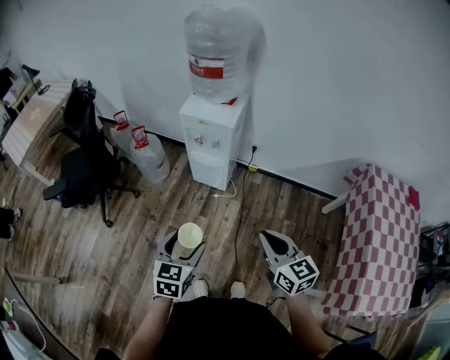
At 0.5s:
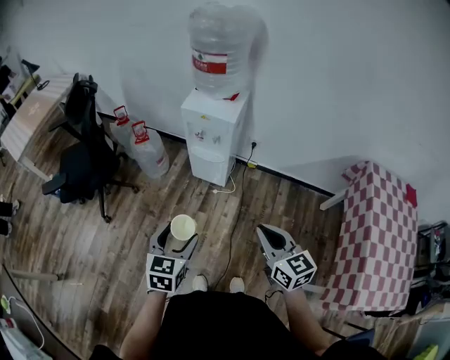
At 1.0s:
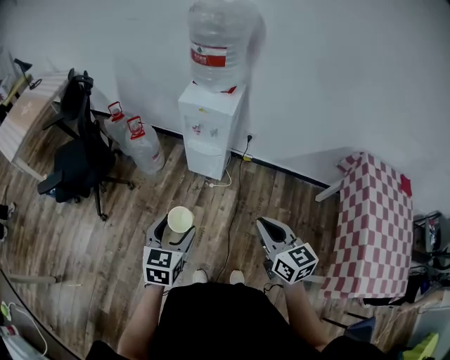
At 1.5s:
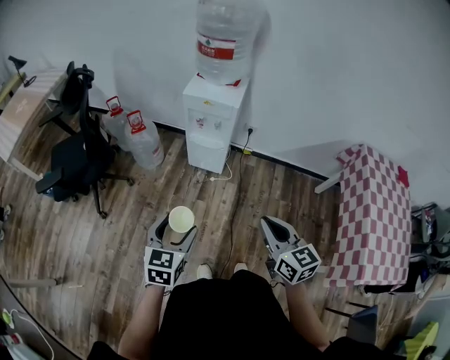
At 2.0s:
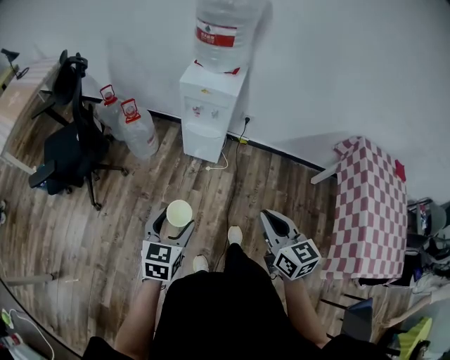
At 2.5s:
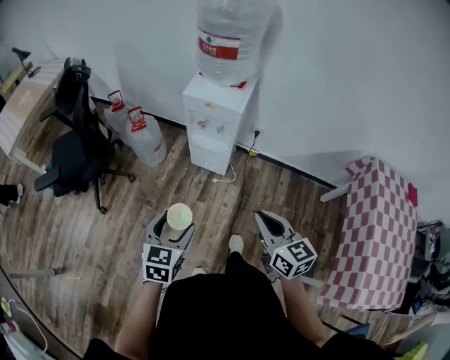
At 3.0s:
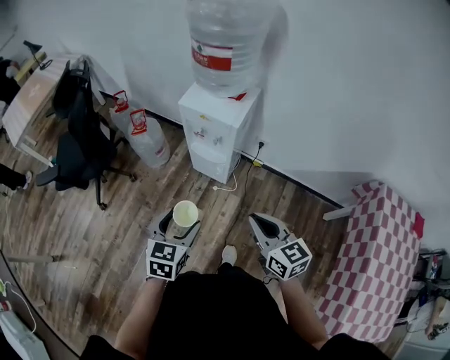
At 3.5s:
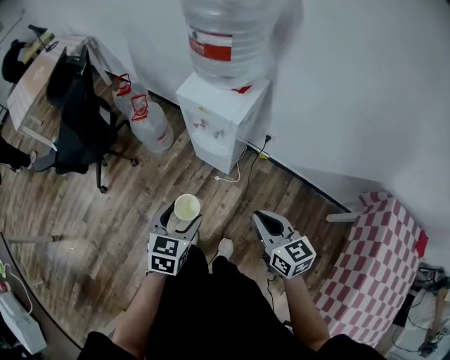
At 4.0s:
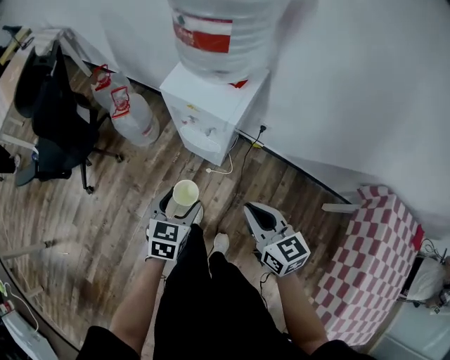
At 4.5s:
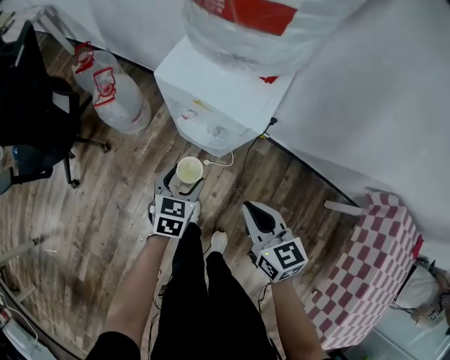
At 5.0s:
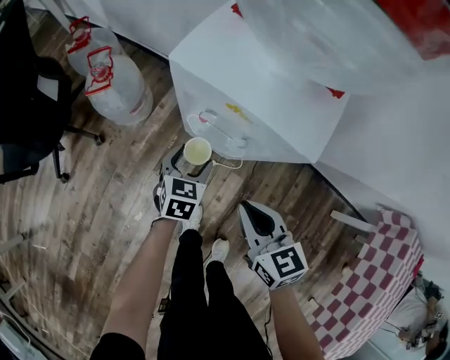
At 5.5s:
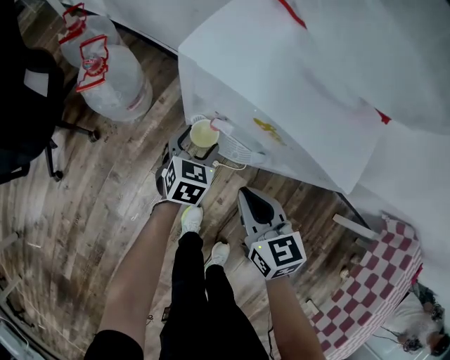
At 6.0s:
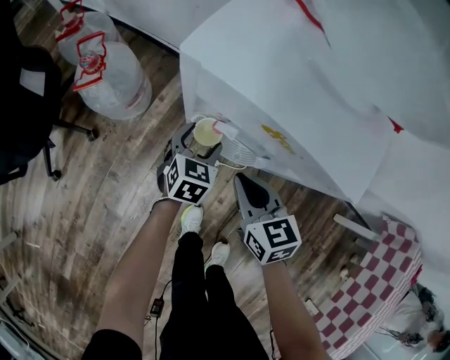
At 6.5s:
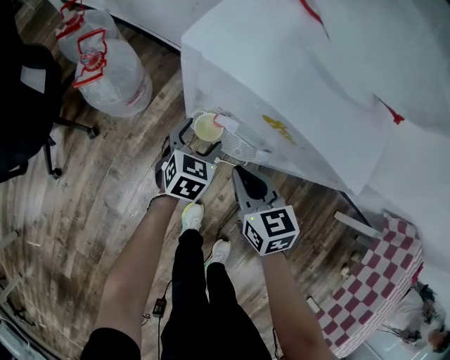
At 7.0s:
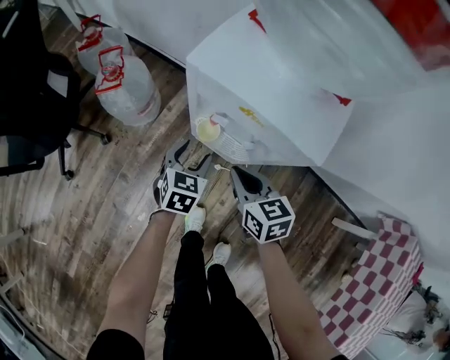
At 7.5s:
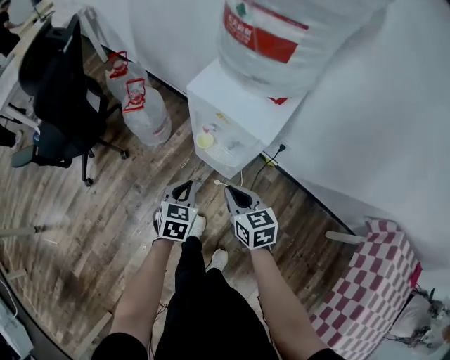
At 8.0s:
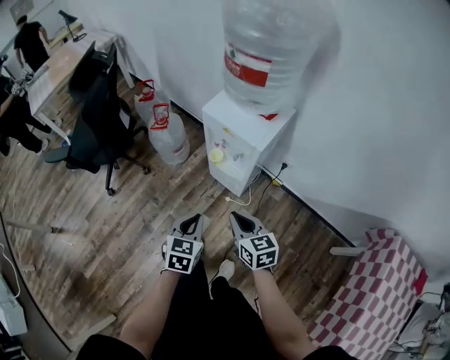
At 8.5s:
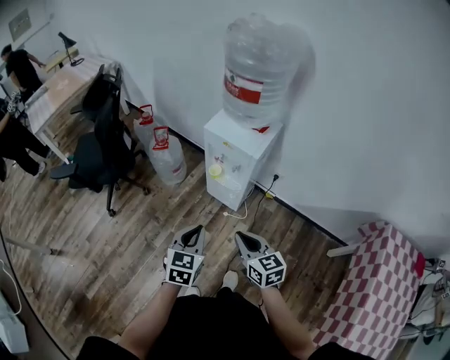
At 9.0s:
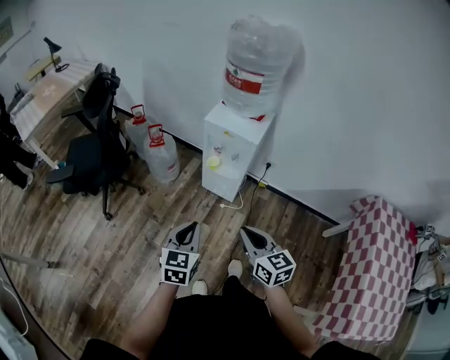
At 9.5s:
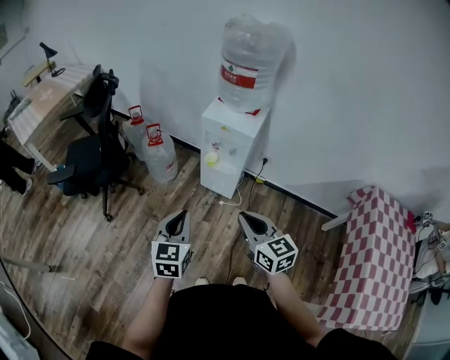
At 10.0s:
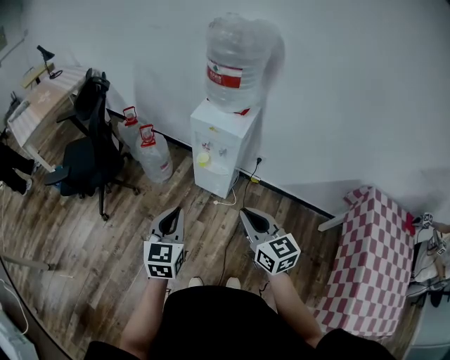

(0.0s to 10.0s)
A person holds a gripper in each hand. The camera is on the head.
0.0s - 2.0s: Both grippers move to the left, about 10 cm.
2.0s - 4.0s: The grippers both shift forward and to the right by roughly 30 cm. The right gripper turns by roughly 20 degrees.
4.0s - 6.0s: The grippers both shift downward and forward by roughly 40 cm.
6.0s - 8.0s: The grippers both shift upward and backward by some 40 cm. The left gripper closes.
8.0s - 10.0s: The right gripper heads upward and backward, covering some 25 cm, and turns by about 20 degrees. The left gripper is displaced upward, backward and to the left by approximately 25 cm, and rotates approximately 20 degrees.

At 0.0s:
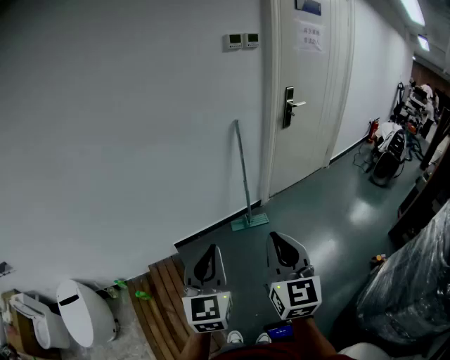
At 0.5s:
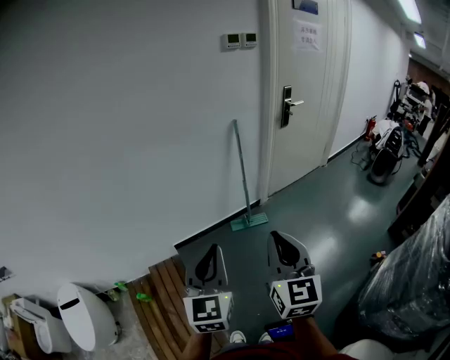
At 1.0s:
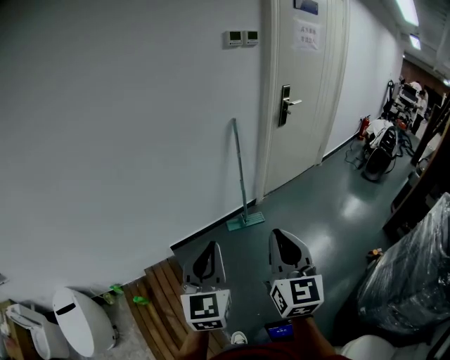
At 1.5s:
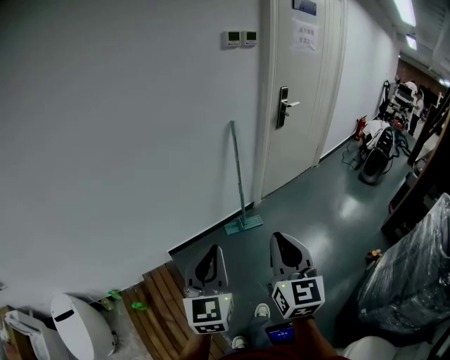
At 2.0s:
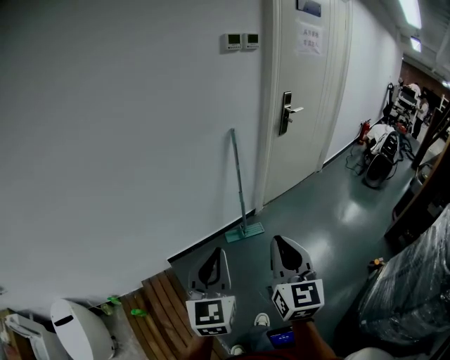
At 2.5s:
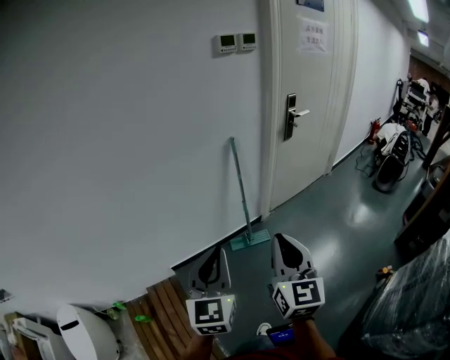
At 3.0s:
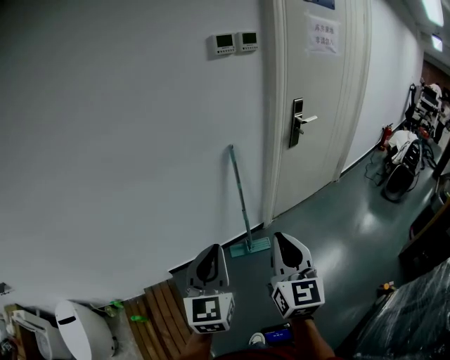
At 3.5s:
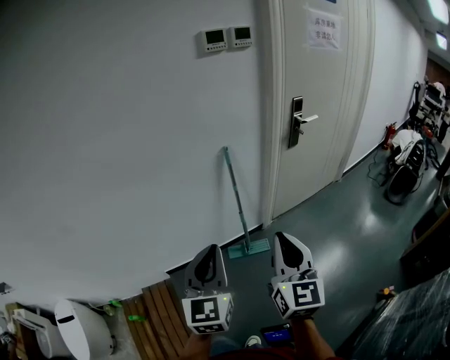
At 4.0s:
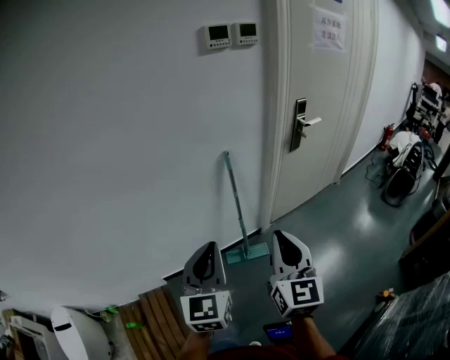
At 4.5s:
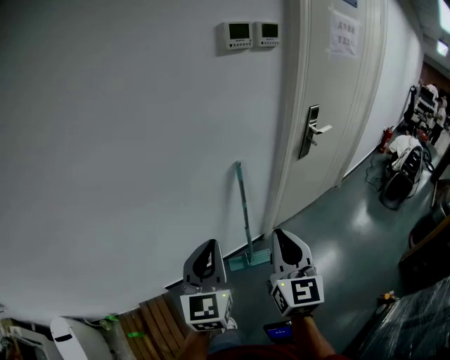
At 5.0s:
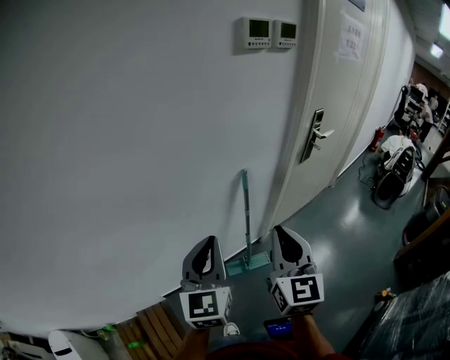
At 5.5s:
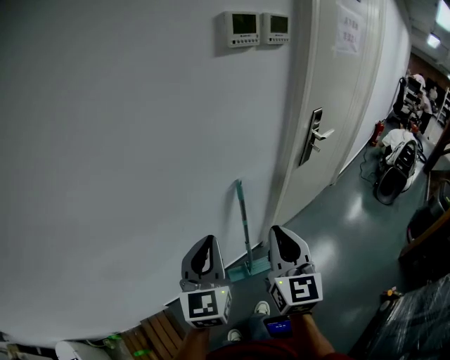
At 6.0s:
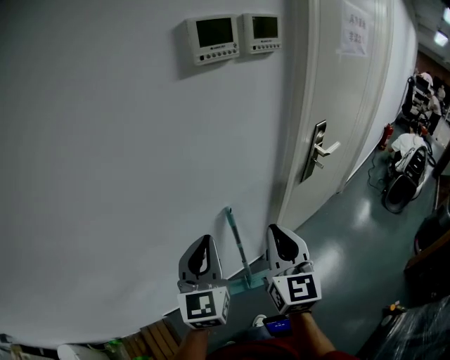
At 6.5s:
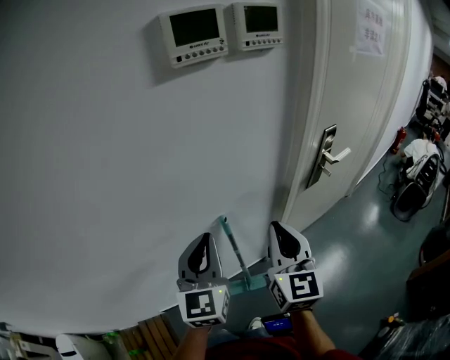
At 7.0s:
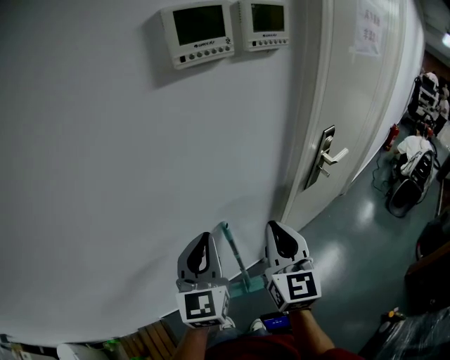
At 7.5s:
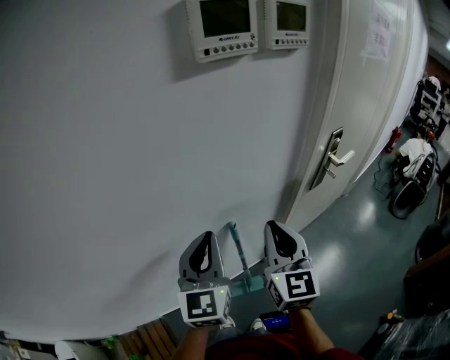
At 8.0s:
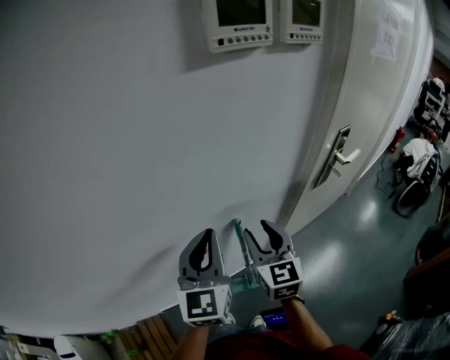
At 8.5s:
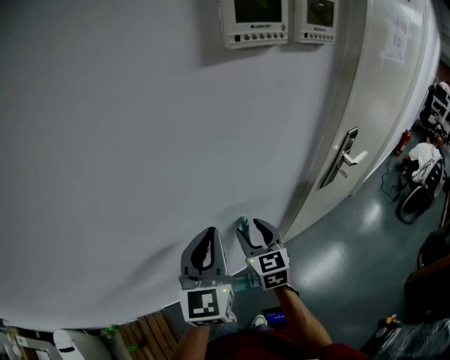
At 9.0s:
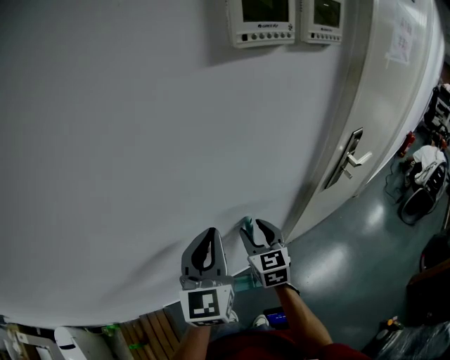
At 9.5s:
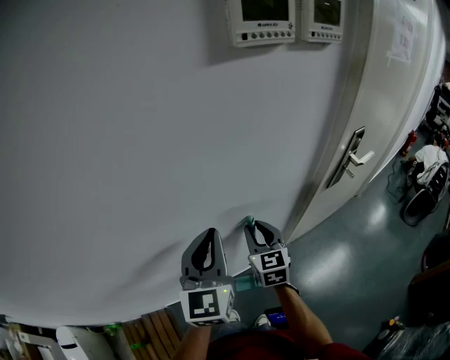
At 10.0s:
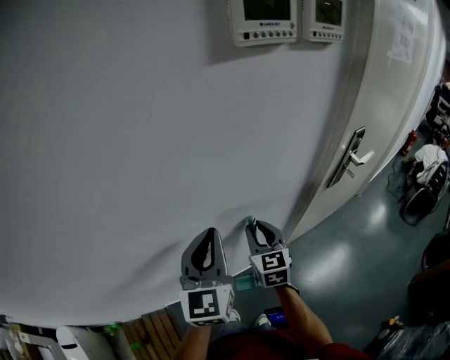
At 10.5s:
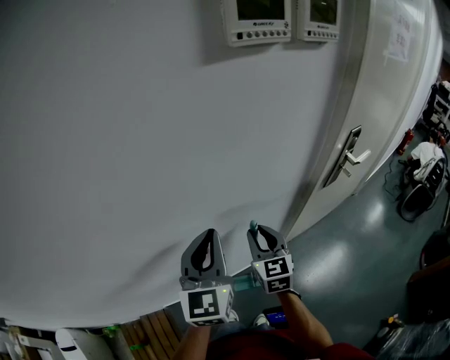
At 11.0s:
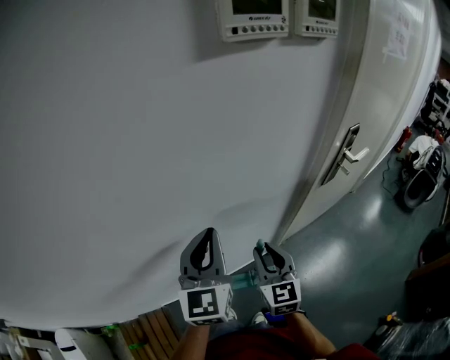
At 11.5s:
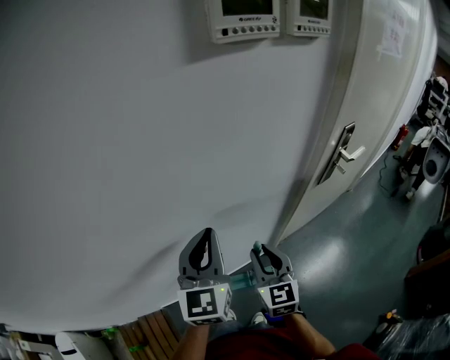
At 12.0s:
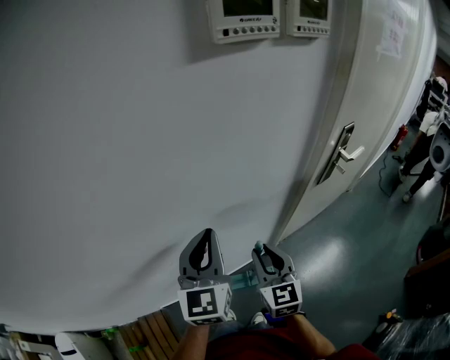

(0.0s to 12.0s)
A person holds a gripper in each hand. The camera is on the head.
0.0s - 2.0s: Both grippers travel together forward, roughly 10 cm.
2.0s - 4.0s: Both grippers travel together forward and to the right, roughly 30 cm.
4.0s - 6.0s: The grippers both shift forward by approximately 35 cm.
6.0s - 8.0s: The left gripper travels forward by about 10 cm, while the right gripper moves forward and downward, roughly 15 cm, and opens.
8.0s - 10.0s: The right gripper is displaced downward by roughly 10 cm.
10.0s - 12.0s: The right gripper moves backward, some 10 cm.

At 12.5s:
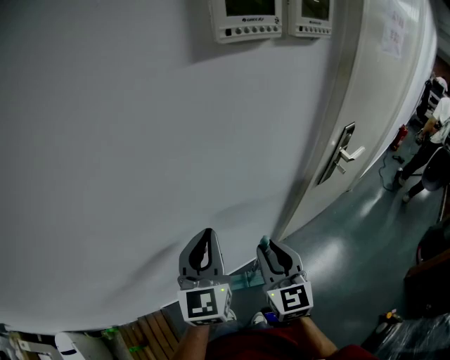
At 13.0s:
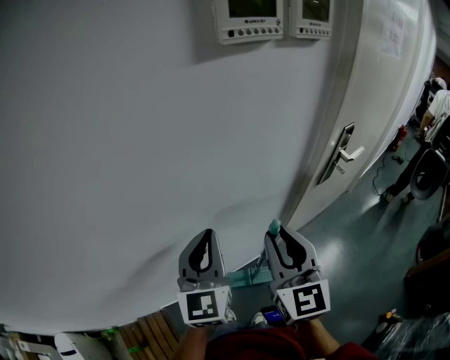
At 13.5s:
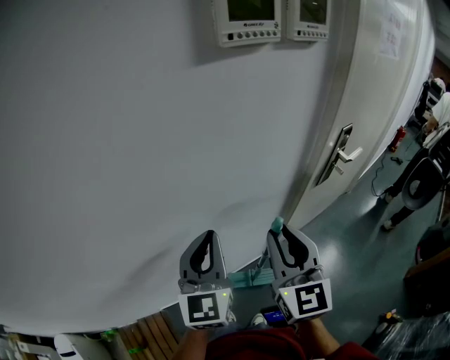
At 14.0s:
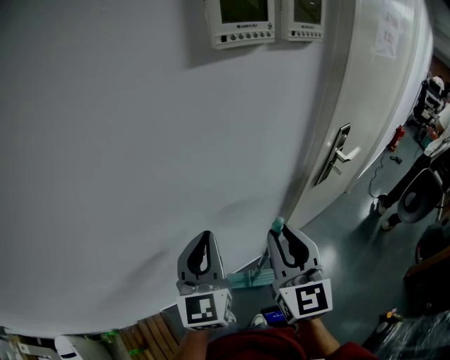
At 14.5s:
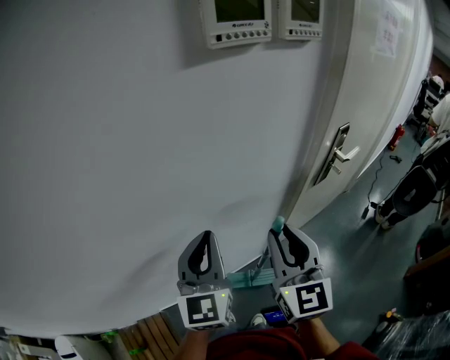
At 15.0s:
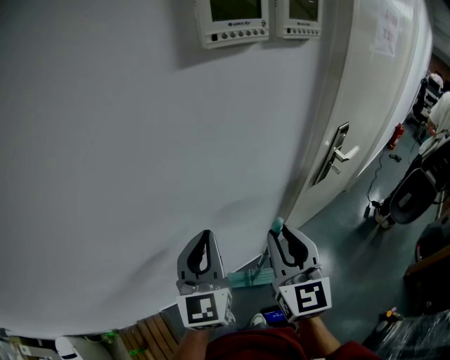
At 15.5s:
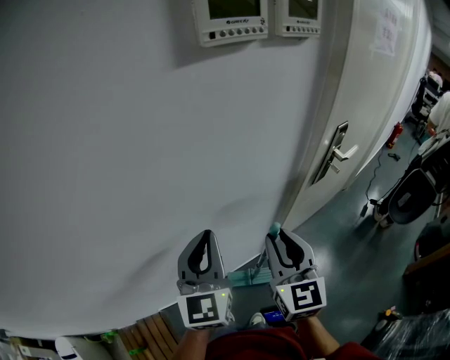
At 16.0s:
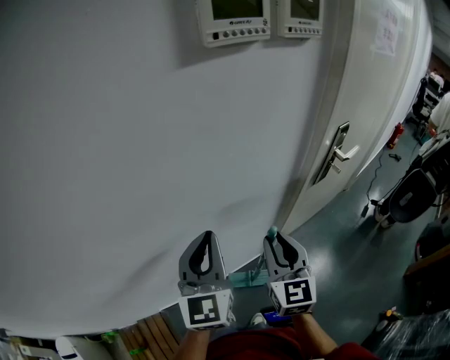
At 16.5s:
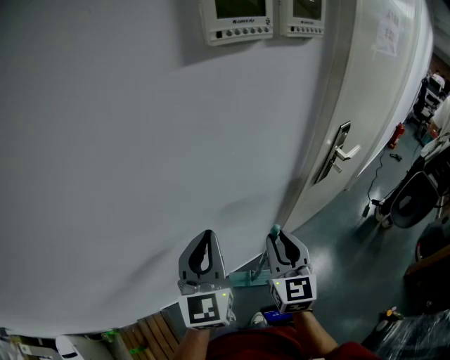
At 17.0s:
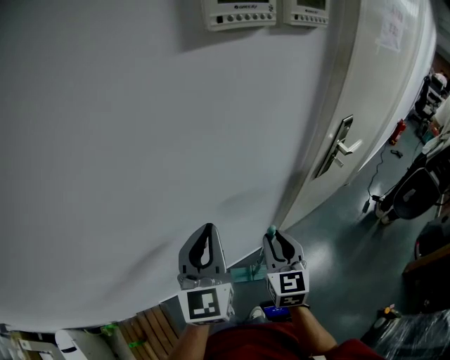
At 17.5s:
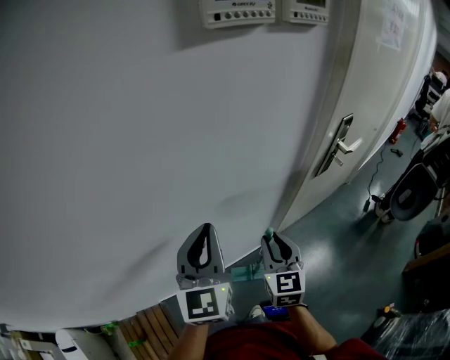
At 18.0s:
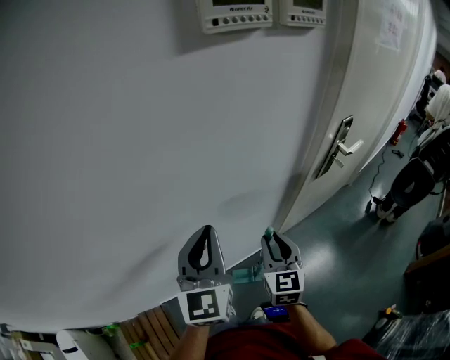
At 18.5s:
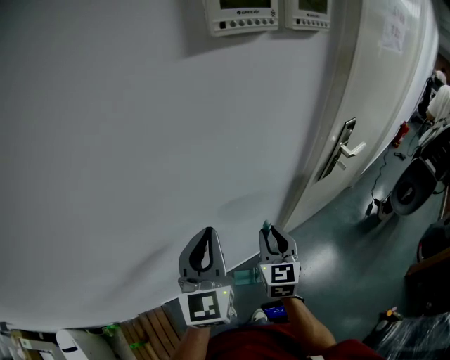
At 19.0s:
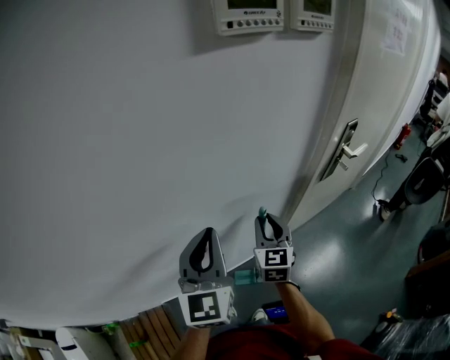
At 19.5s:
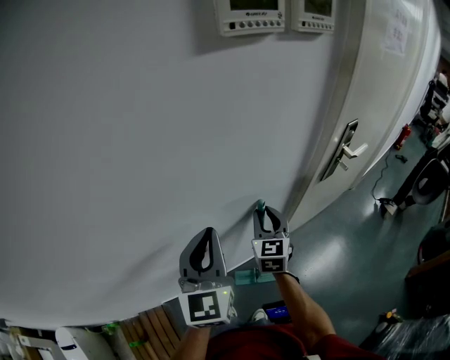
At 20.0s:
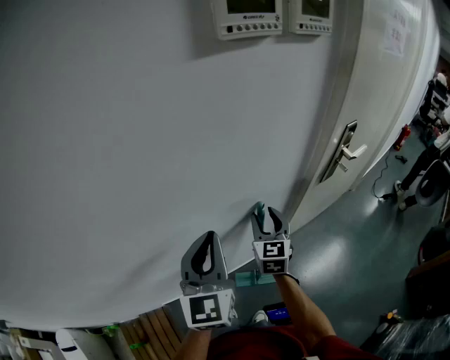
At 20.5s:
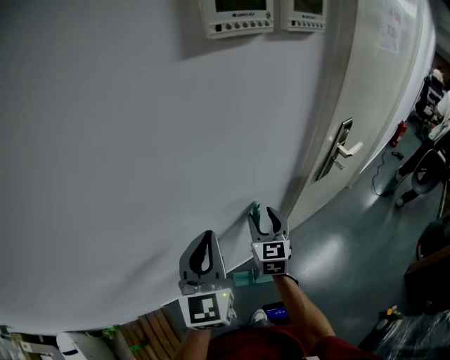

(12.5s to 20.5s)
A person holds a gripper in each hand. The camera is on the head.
12.5s - 14.5s: The right gripper moves upward, approximately 10 cm.
14.5s - 16.5s: The right gripper travels downward by some 10 cm.
16.5s - 18.5s: The right gripper moves downward, about 5 cm.
18.5s - 20.5s: The right gripper shifts roughly 5 cm forward, and opens its fingers.
